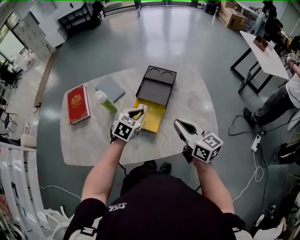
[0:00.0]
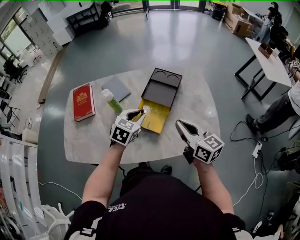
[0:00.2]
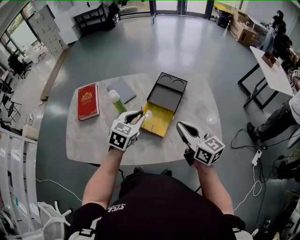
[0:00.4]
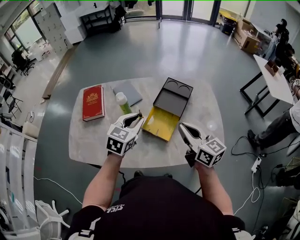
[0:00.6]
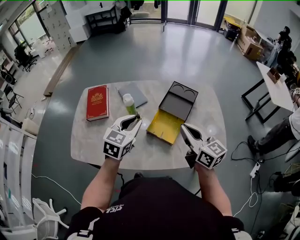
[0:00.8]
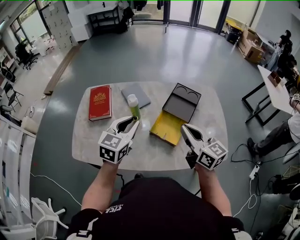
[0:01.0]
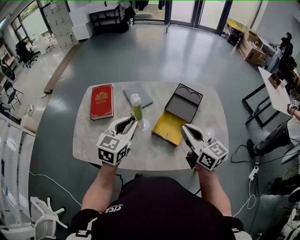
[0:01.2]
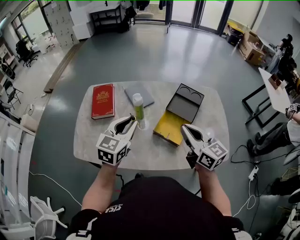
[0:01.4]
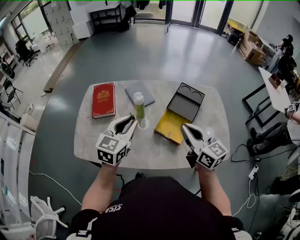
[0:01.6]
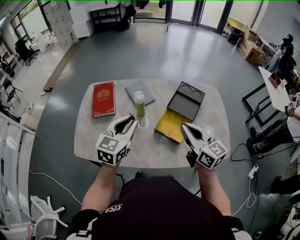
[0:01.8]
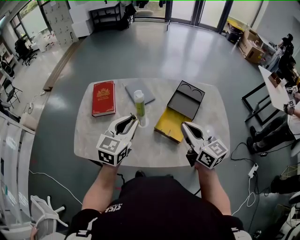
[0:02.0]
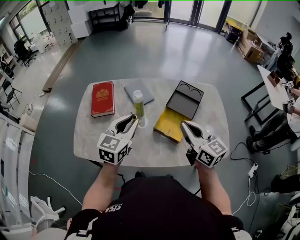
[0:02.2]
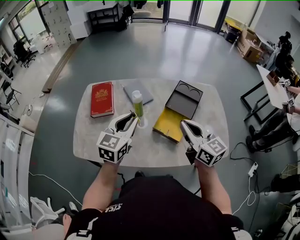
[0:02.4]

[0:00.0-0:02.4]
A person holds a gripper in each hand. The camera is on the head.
0:00.0 to 0:01.2: The left gripper moves to the left and upward, some 25 cm, and changes its angle by some 30 degrees. The right gripper travels to the left and upward by about 15 cm.
0:01.2 to 0:02.4: The grippers stay close to where they were, moving slightly.

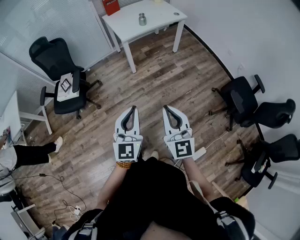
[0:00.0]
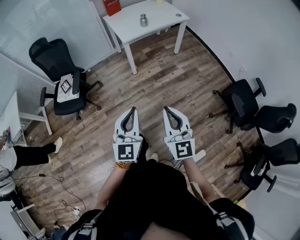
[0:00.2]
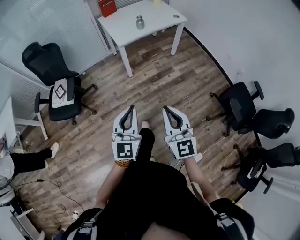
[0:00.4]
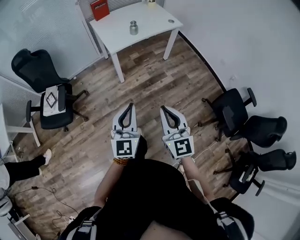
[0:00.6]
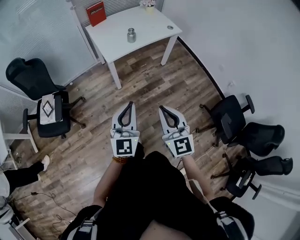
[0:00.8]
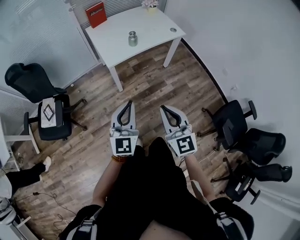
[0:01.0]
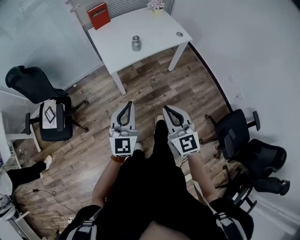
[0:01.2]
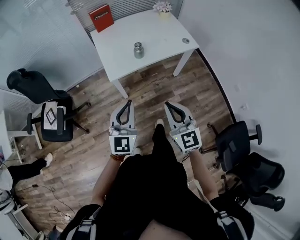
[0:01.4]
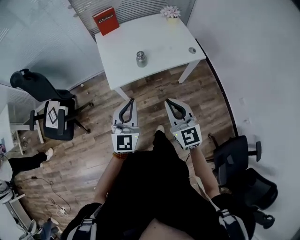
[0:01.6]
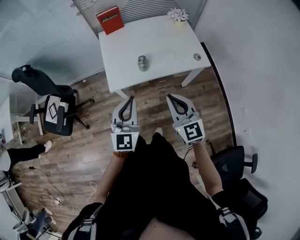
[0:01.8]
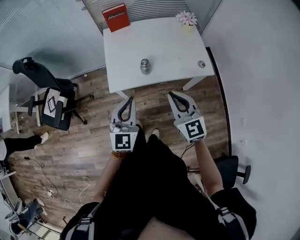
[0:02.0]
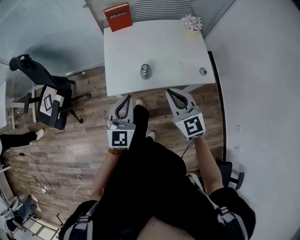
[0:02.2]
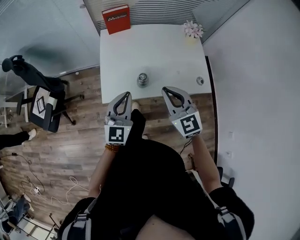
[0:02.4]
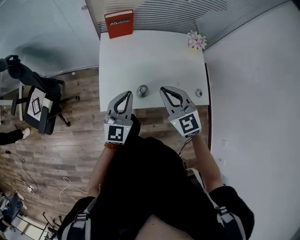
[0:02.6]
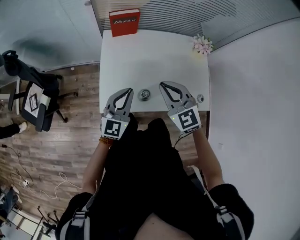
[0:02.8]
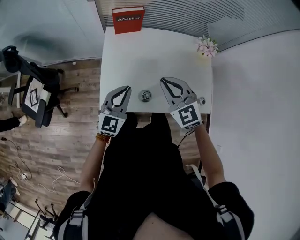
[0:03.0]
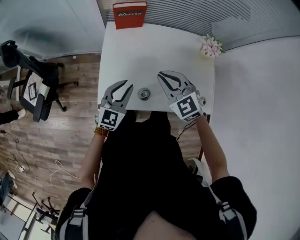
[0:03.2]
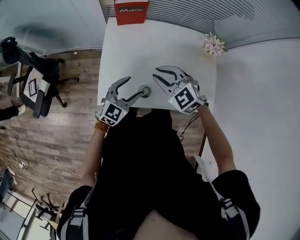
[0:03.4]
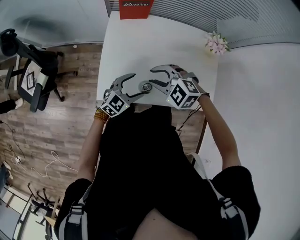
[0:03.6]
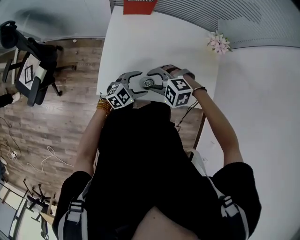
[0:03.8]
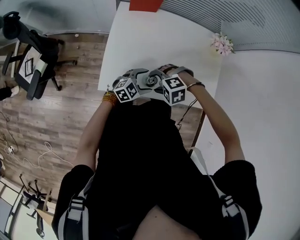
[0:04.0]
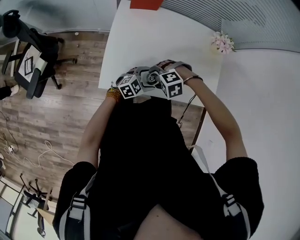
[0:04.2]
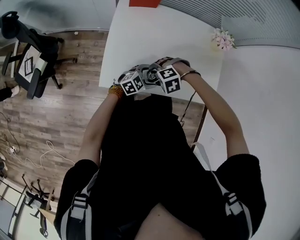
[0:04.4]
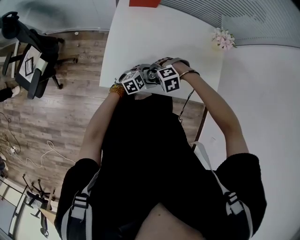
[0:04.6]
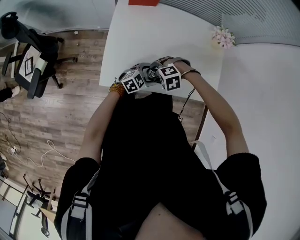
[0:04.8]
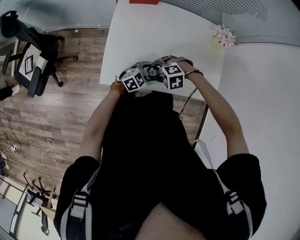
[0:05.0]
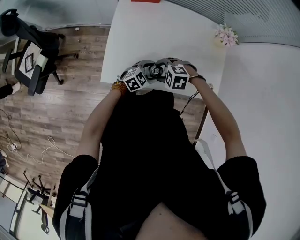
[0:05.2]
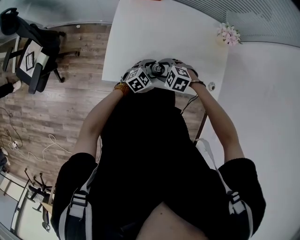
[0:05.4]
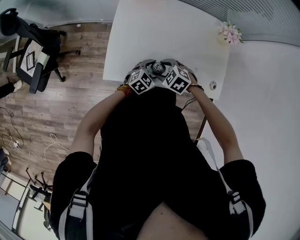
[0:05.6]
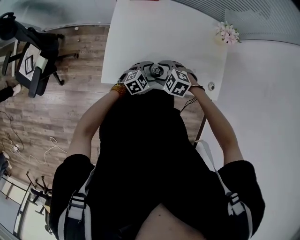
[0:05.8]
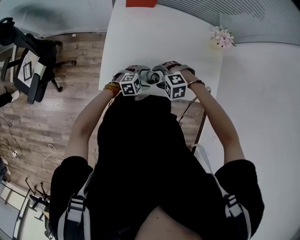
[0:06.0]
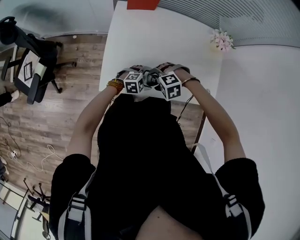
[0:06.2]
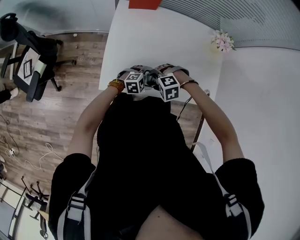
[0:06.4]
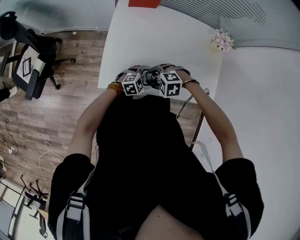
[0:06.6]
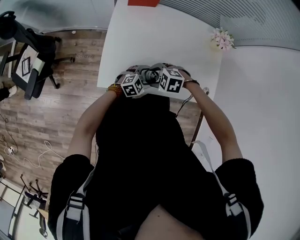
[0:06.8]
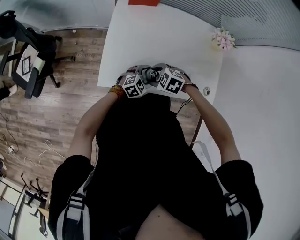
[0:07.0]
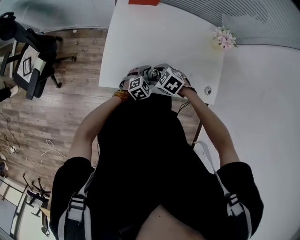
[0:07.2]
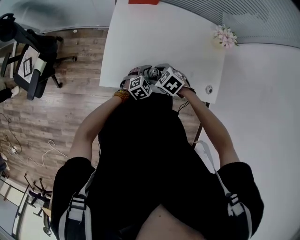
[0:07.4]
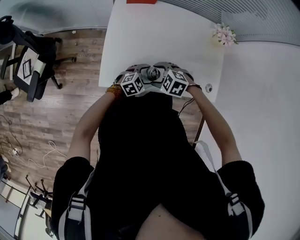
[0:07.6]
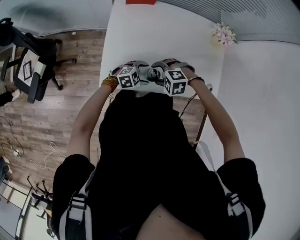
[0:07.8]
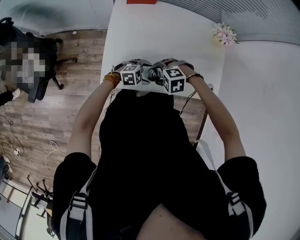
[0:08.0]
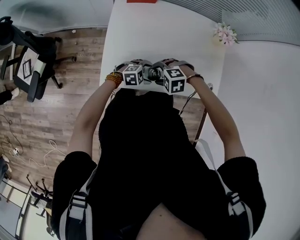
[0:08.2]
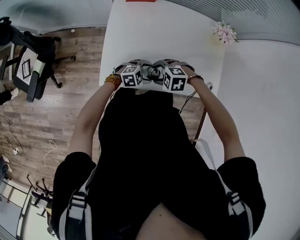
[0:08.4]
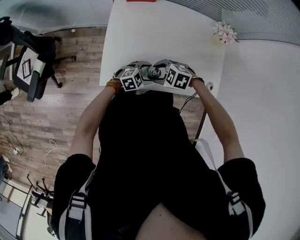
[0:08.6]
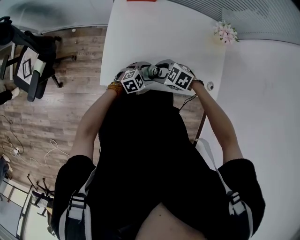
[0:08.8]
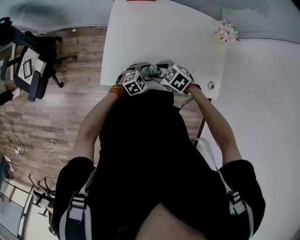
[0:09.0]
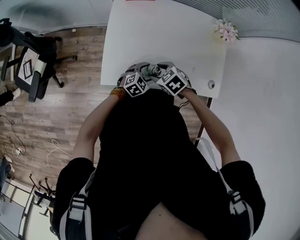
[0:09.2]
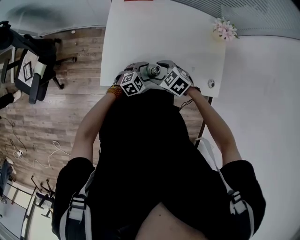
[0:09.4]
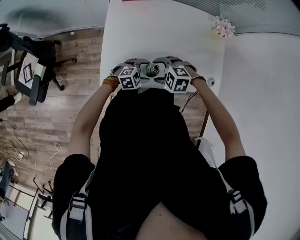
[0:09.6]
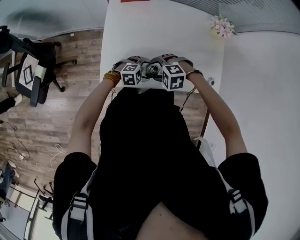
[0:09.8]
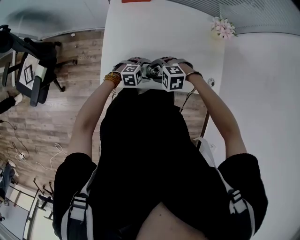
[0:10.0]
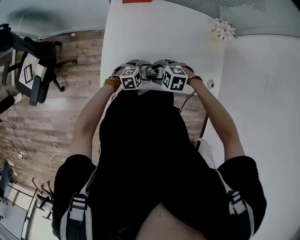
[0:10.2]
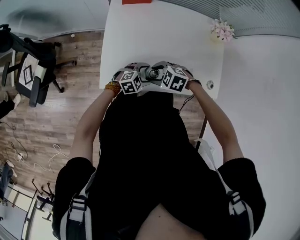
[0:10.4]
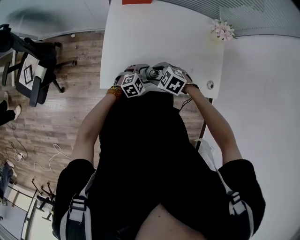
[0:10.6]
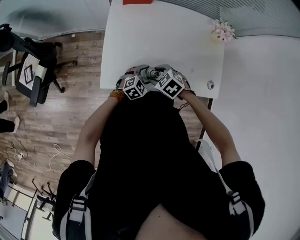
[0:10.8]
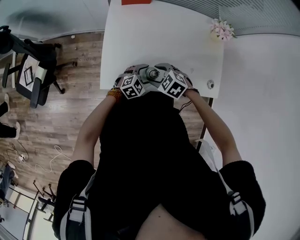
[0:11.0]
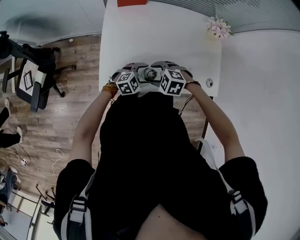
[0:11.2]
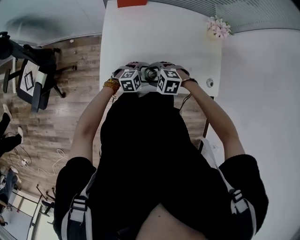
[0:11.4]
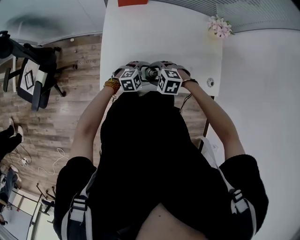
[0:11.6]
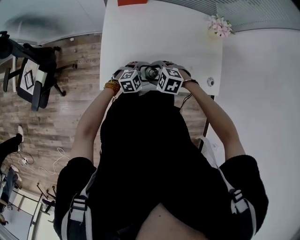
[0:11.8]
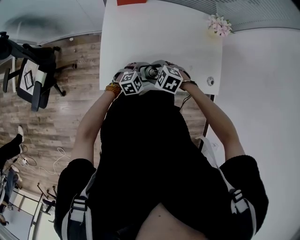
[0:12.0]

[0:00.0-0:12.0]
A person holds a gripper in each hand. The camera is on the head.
0:00.0 to 0:01.6: The pair of grippers is taken forward, about 60 cm. The right gripper rotates roughly 20 degrees.
0:01.6 to 0:03.0: Both grippers travel together forward, approximately 40 cm. The right gripper changes its angle by roughly 40 degrees.
0:03.0 to 0:04.4: The grippers both shift downward by roughly 20 cm. The left gripper changes its angle by approximately 40 degrees, and opens up. The right gripper tips its fingers downward by approximately 50 degrees, and opens up.
0:06.0 to 0:07.6: The right gripper turns by roughly 30 degrees.

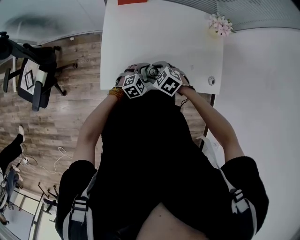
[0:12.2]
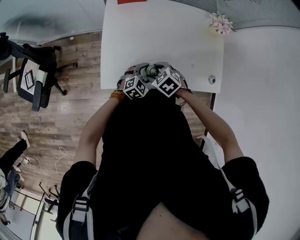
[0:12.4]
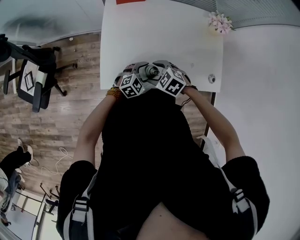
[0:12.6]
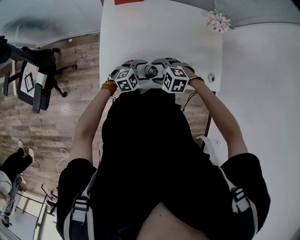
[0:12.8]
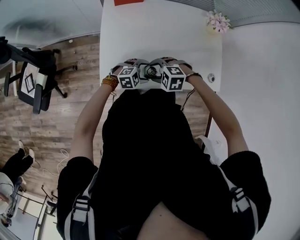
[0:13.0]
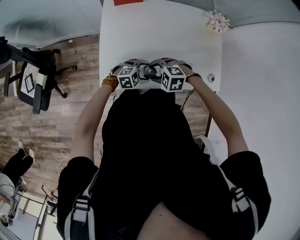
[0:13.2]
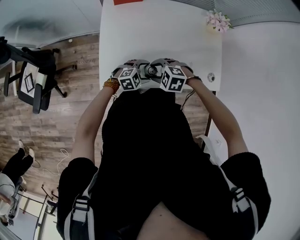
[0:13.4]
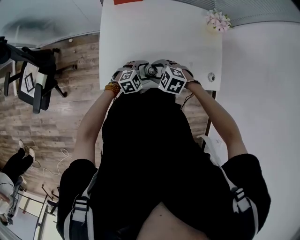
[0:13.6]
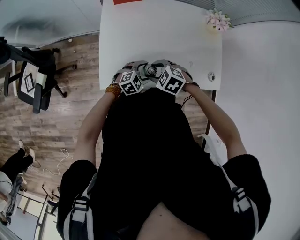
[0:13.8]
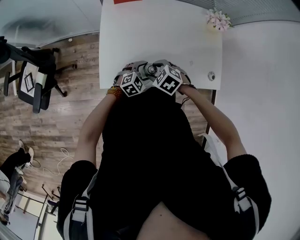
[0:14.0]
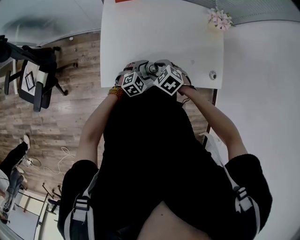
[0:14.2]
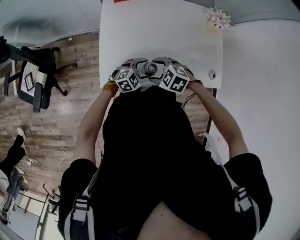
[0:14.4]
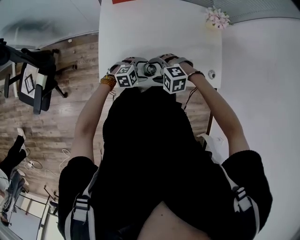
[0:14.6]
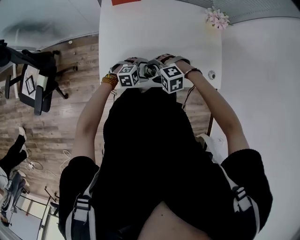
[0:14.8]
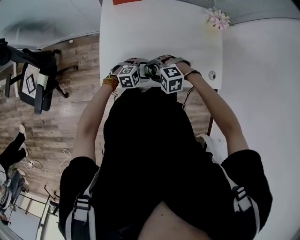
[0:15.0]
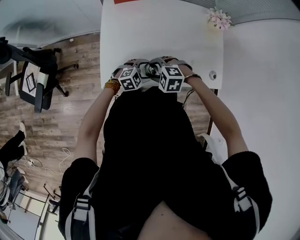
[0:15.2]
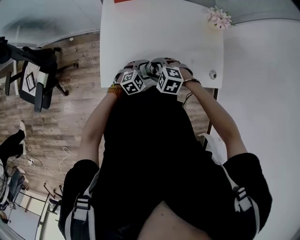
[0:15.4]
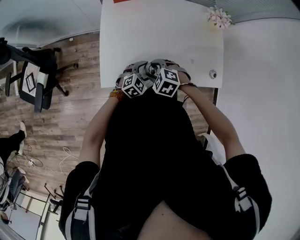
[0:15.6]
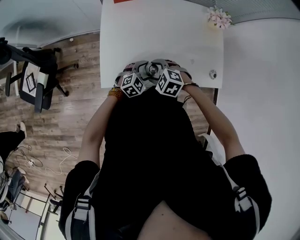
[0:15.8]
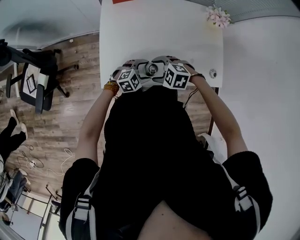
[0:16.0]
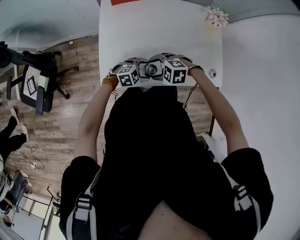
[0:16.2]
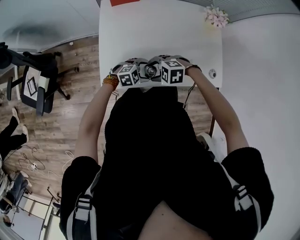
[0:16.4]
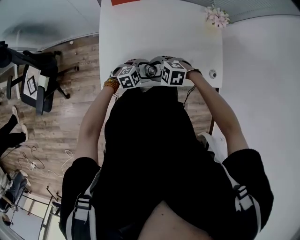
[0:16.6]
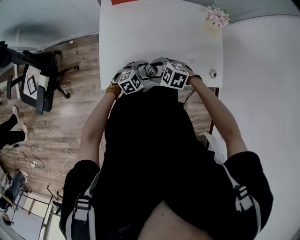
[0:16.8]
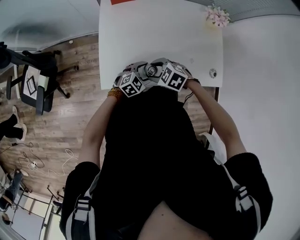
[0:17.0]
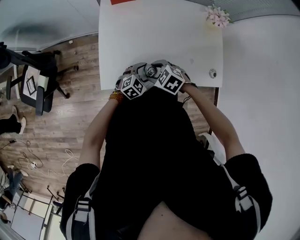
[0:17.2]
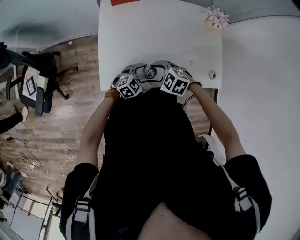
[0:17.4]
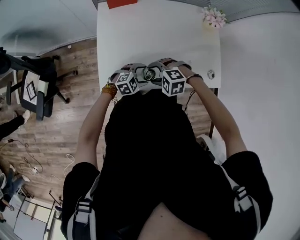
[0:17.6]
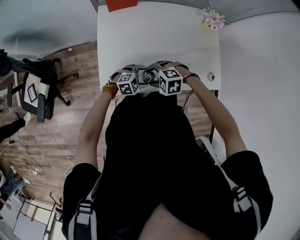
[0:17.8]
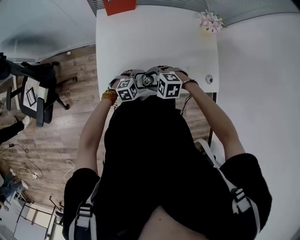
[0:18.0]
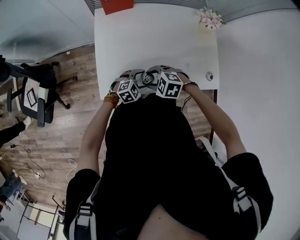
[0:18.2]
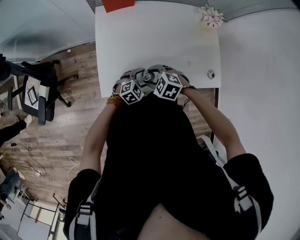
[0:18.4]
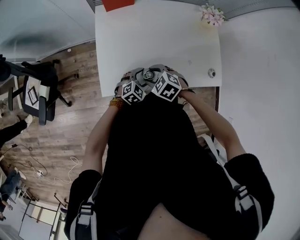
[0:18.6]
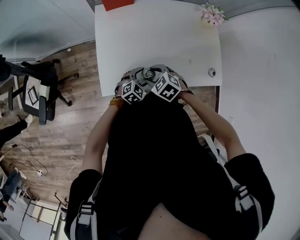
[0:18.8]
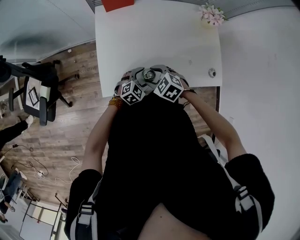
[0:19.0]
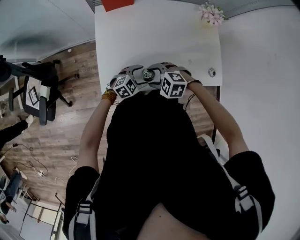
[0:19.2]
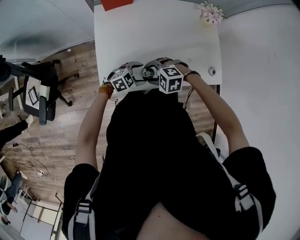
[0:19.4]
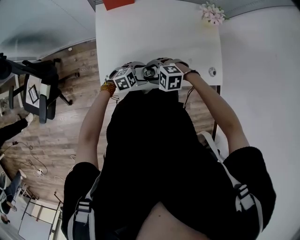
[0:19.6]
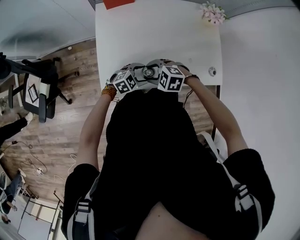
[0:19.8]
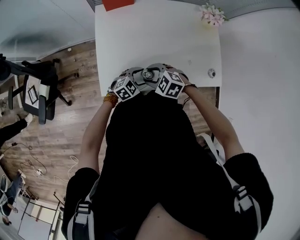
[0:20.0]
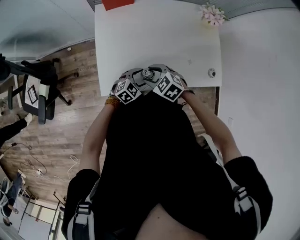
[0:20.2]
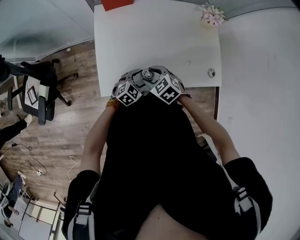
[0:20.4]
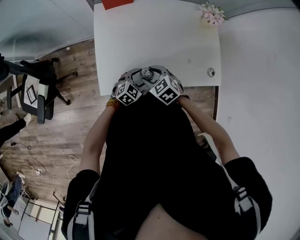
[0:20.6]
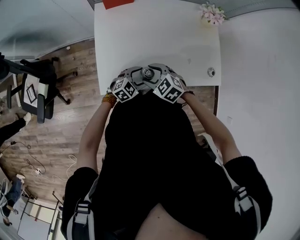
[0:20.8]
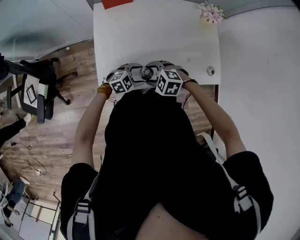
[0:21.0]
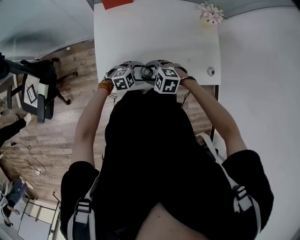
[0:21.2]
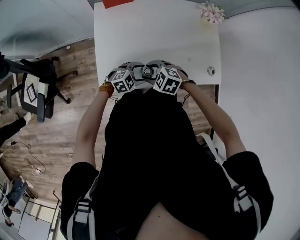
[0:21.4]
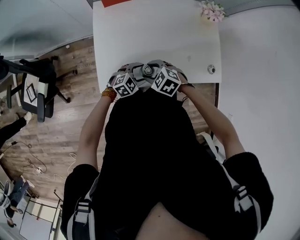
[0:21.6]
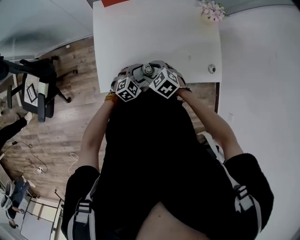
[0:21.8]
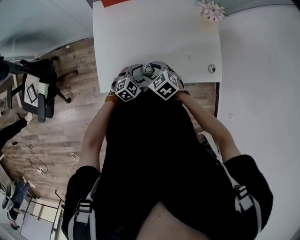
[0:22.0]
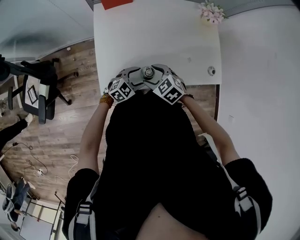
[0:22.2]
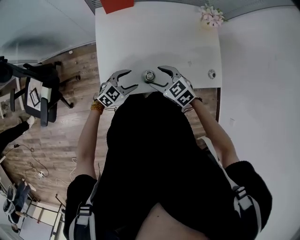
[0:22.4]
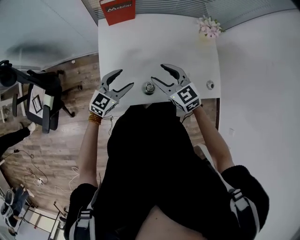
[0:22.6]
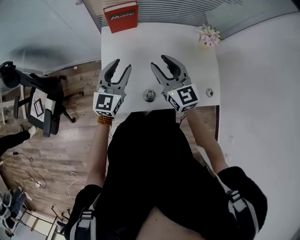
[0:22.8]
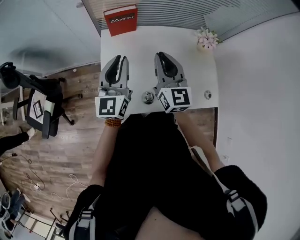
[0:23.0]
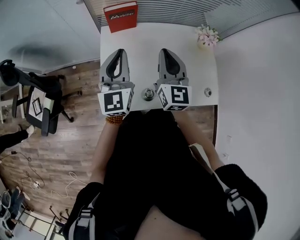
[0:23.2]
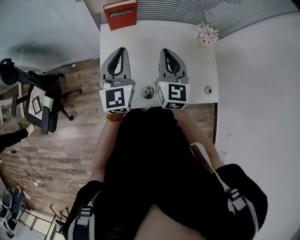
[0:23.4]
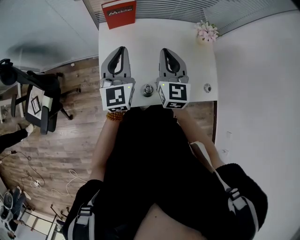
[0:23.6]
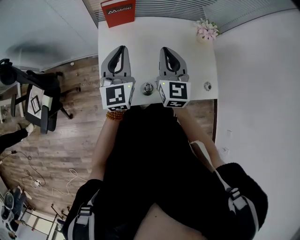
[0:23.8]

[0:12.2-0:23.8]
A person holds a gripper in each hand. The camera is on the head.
0:13.6 to 0:15.0: The right gripper turns by about 30 degrees.
0:21.0 to 0:22.4: The right gripper changes place by roughly 5 cm, and swivels some 30 degrees. The left gripper shifts by roughly 5 cm.
0:22.4 to 0:23.8: Both grippers move upward and forward, about 25 cm. The left gripper angles its fingers upward, by about 30 degrees, and closes up. The right gripper tilts its fingers some 40 degrees upward, and closes.
